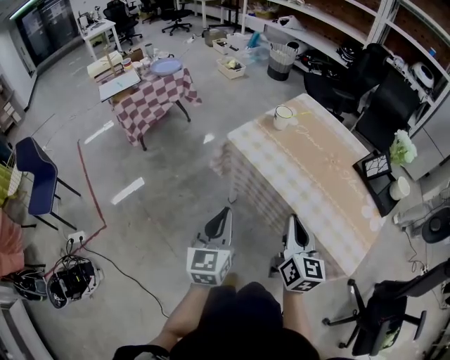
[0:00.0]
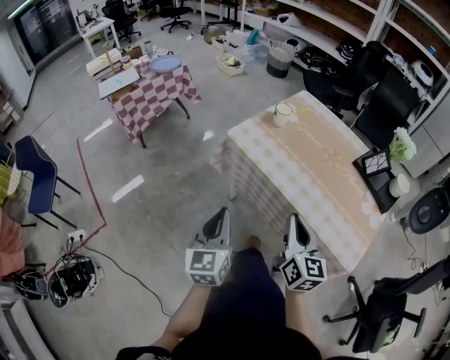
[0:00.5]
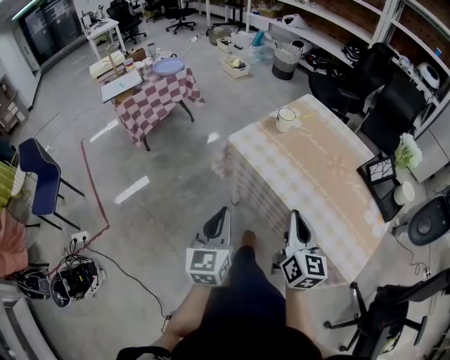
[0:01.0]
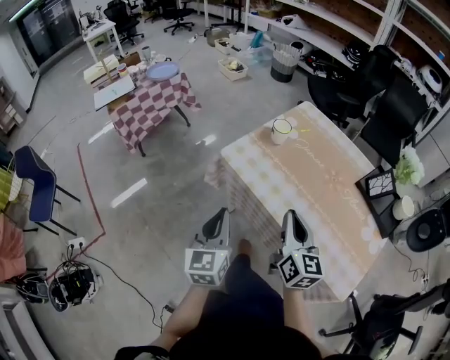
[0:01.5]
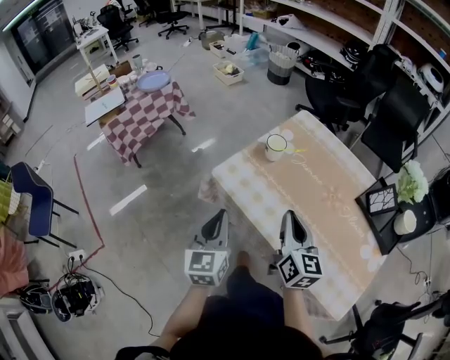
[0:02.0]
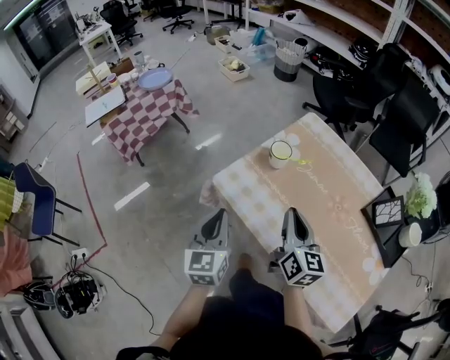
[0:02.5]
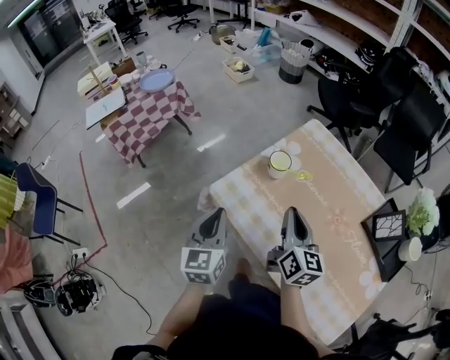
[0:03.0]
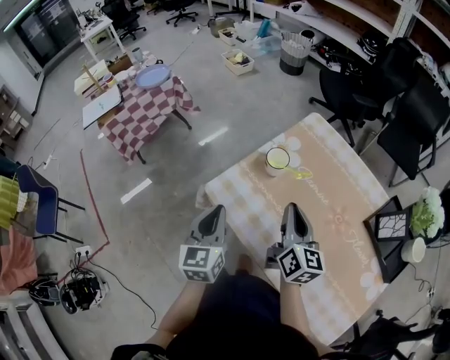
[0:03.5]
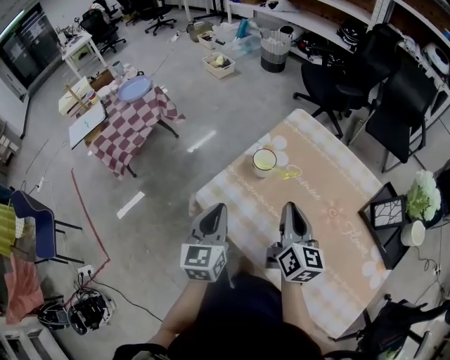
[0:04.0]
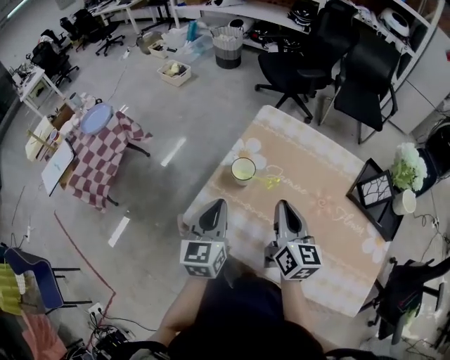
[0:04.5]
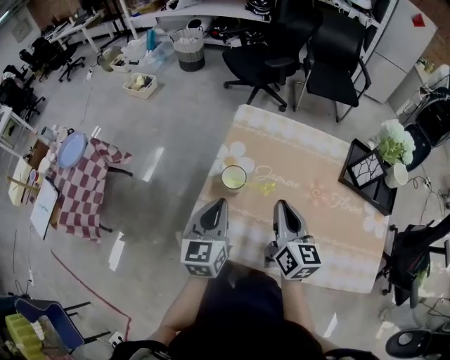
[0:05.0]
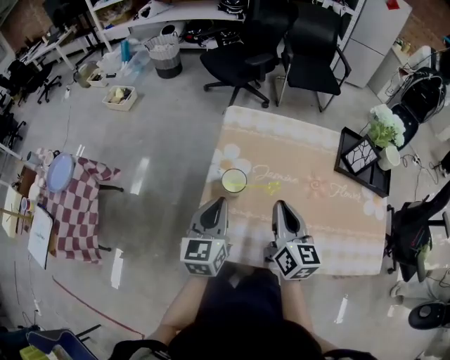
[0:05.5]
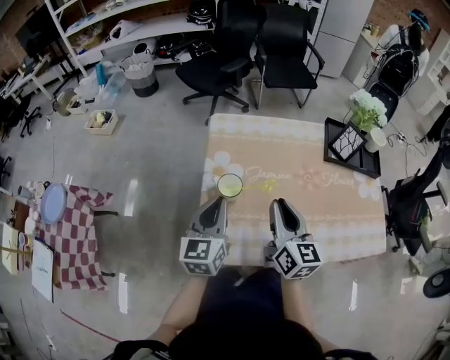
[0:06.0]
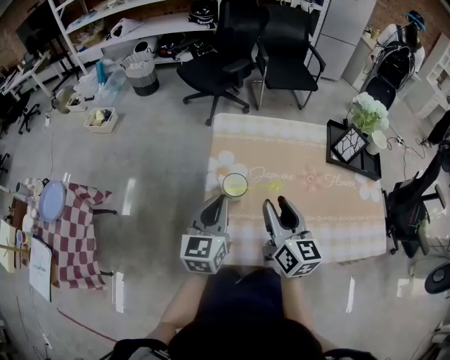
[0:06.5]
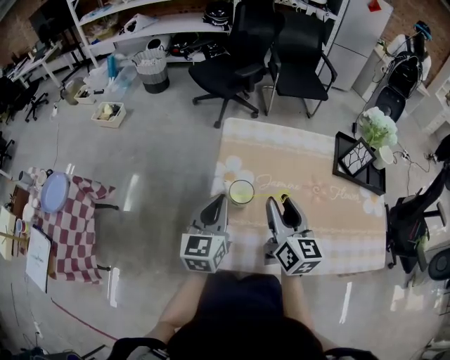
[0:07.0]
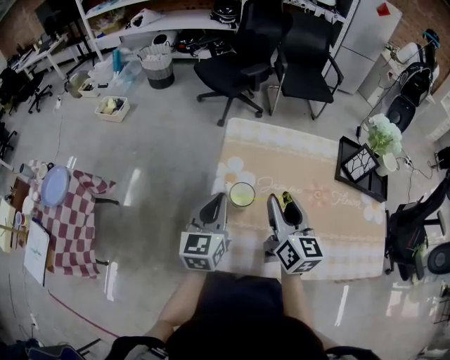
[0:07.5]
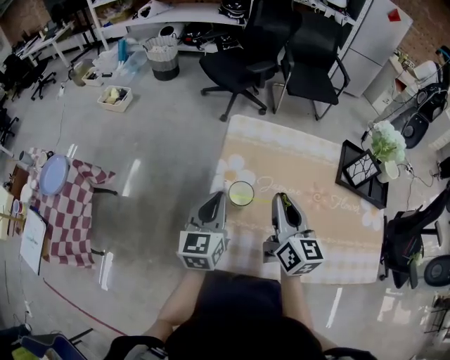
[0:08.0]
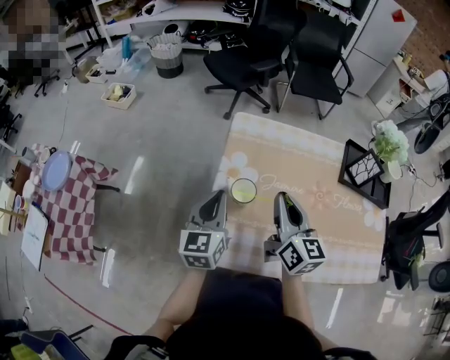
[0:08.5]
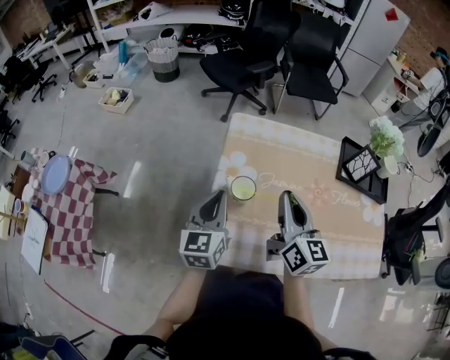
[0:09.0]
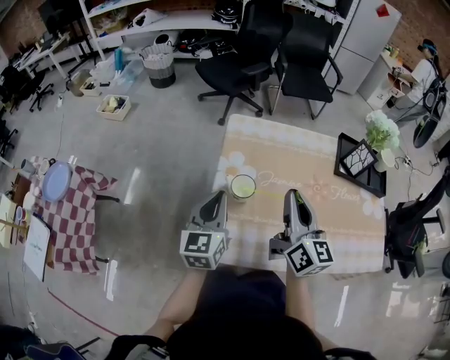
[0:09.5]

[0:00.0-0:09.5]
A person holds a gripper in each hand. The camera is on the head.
0.0 to 2.0 s: The grippers both shift forward by roughly 20 cm.
2.0 to 4.0 s: The grippers both shift forward by about 15 cm.
4.0 to 5.5 s: The right gripper turns by some 30 degrees. Meanwhile the left gripper moves about 15 cm, and changes its angle by approximately 40 degrees.
5.5 to 7.5 s: The right gripper ends up approximately 5 cm from where it was, and opens its fingers. Meanwhile the left gripper changes place by about 5 cm.
7.5 to 9.5 s: The right gripper shifts by roughly 5 cm, and closes up.

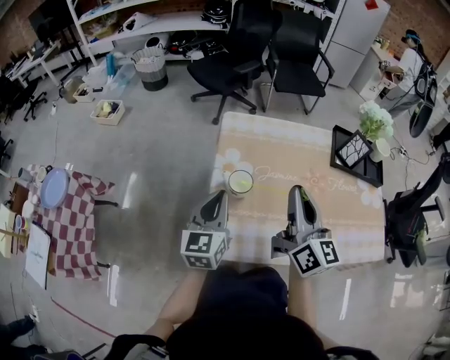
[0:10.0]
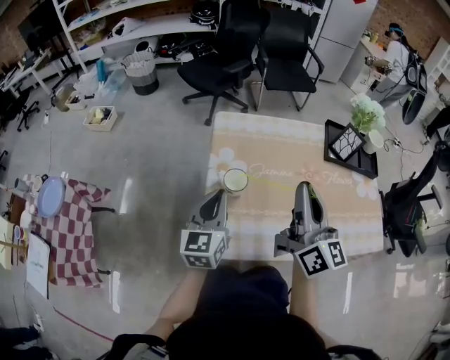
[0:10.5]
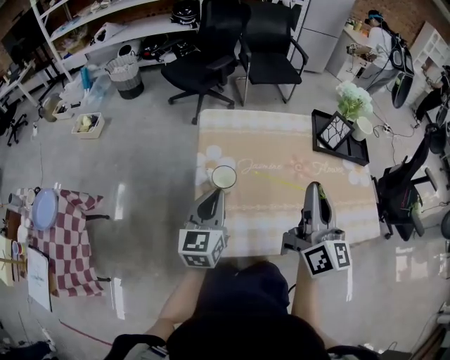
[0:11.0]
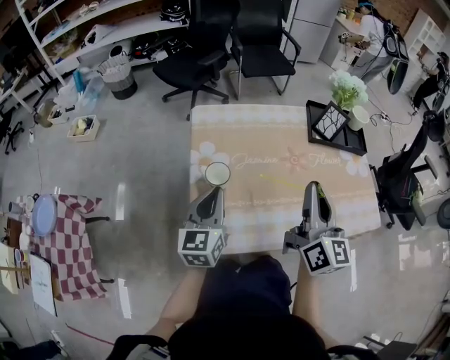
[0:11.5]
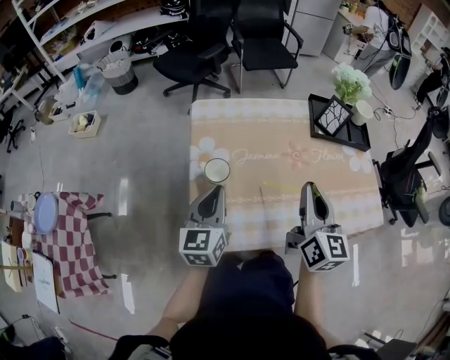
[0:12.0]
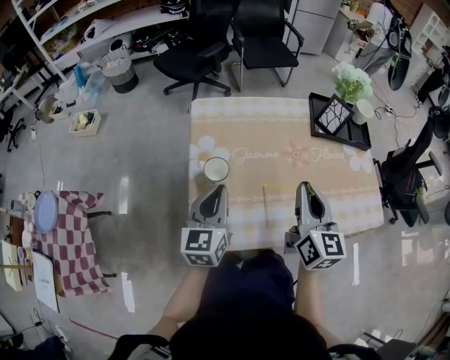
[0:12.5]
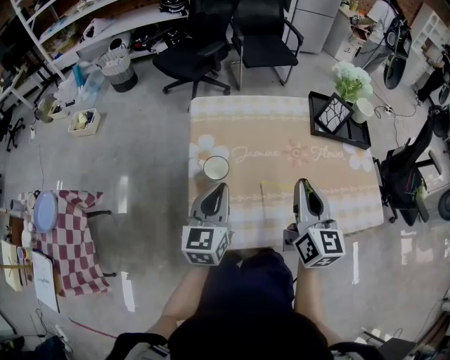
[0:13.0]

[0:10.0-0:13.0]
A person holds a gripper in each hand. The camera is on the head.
10.0 to 11.5 s: The right gripper shifts about 10 cm to the right.
11.5 to 13.0 s: The right gripper moves downward, some 5 cm.

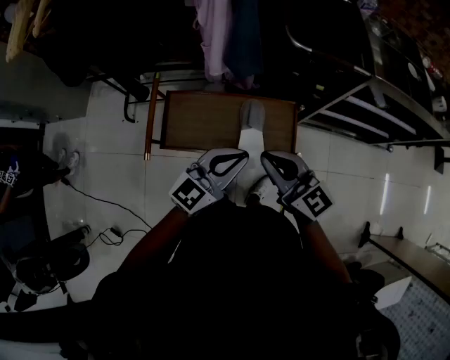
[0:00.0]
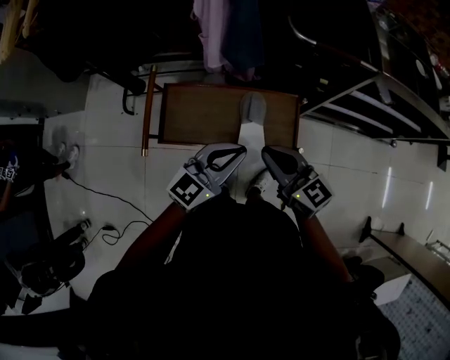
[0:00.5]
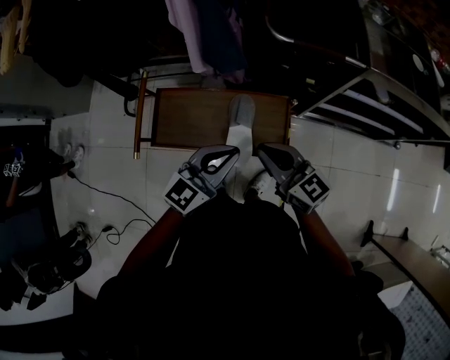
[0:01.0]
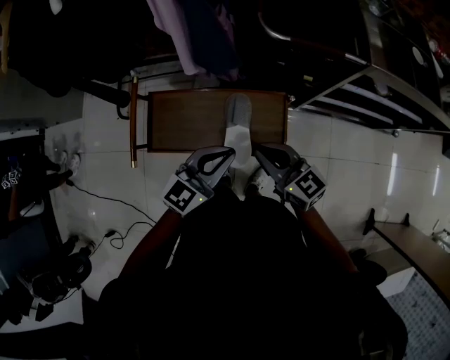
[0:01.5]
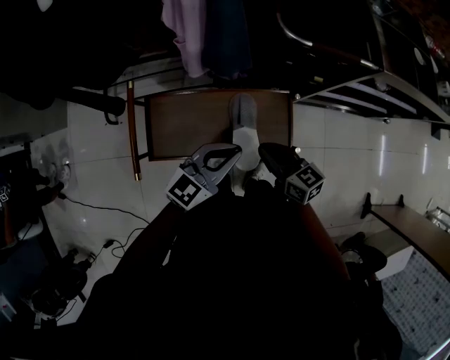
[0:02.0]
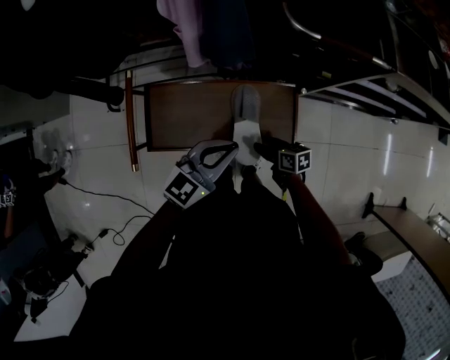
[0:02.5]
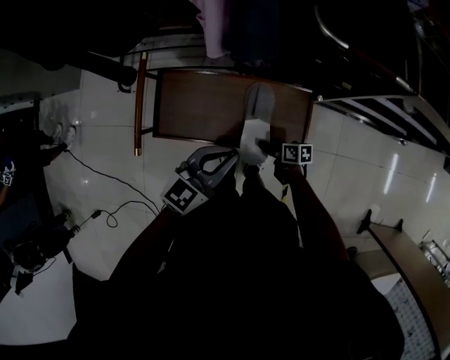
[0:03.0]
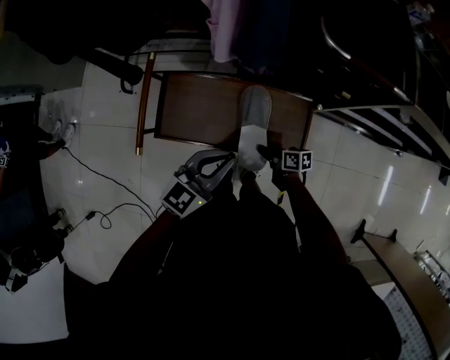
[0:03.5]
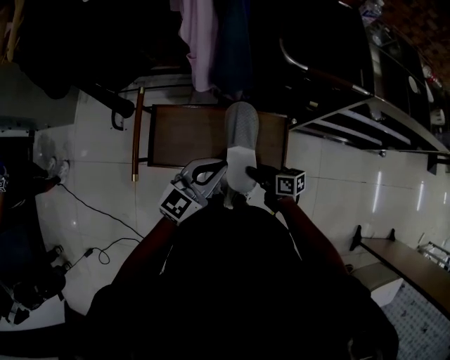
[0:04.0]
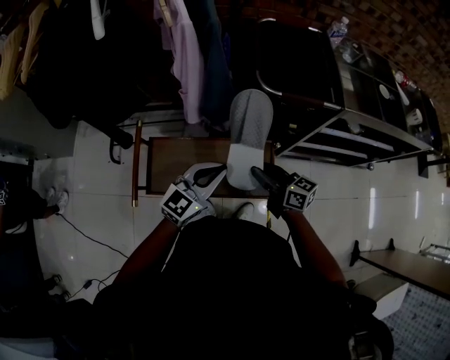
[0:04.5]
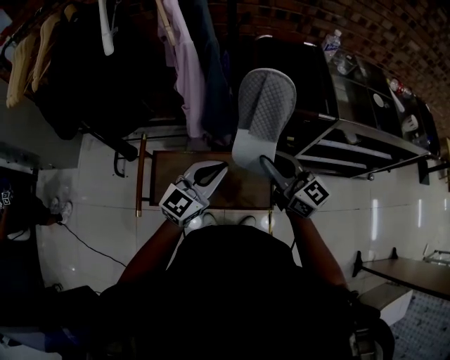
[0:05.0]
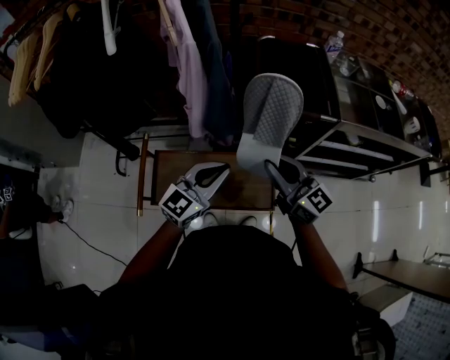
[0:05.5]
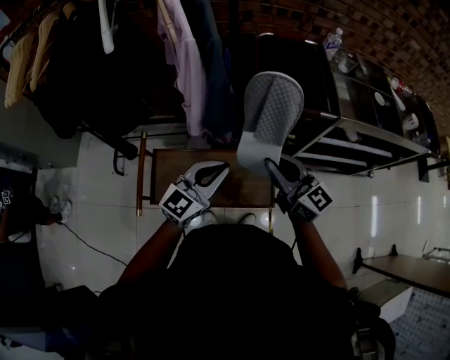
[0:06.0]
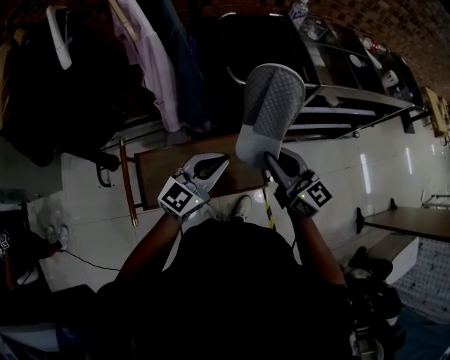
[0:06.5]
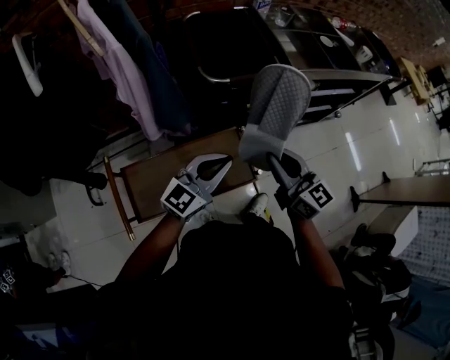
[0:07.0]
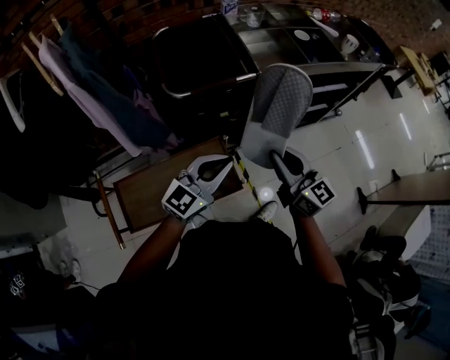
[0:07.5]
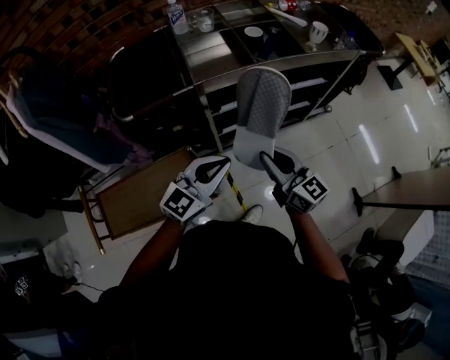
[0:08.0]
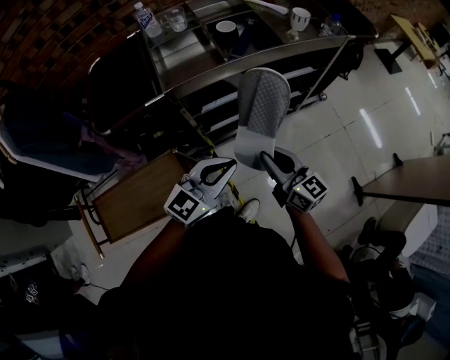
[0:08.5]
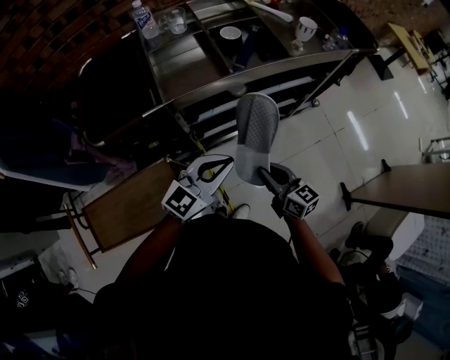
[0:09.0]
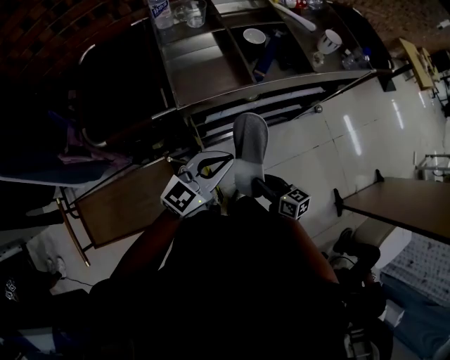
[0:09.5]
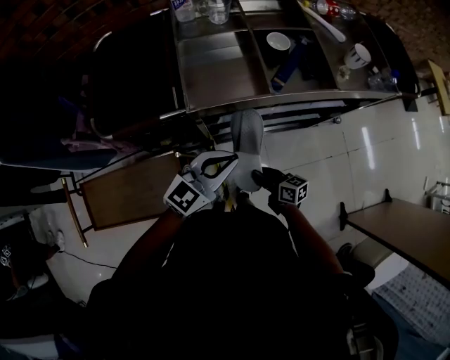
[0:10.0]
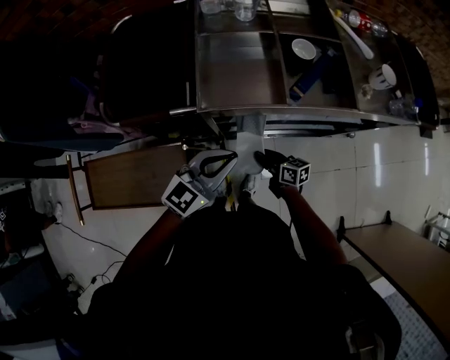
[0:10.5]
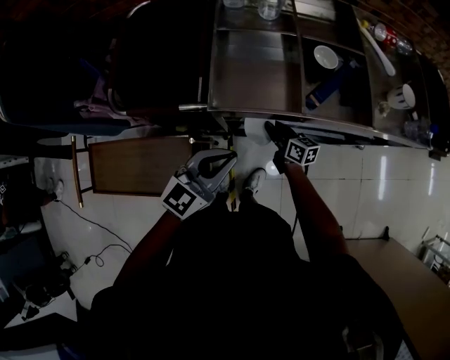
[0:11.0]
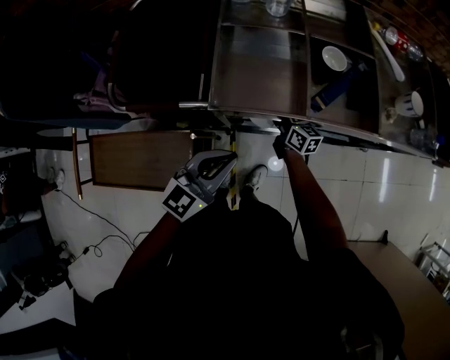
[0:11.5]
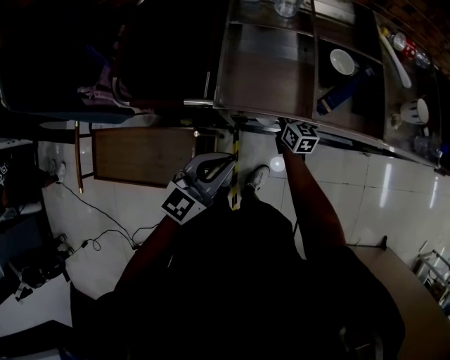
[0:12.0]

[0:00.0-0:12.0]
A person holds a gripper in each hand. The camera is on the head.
0.0 to 2.0 s: The right gripper heads downward and forward, covering roughly 20 cm, and swivels about 30 degrees. Meanwhile the left gripper shifts about 10 cm forward and downward.
2.0 to 4.0 s: The right gripper heads downward, covering roughly 10 cm, rotates about 30 degrees, and opens, then closes again.
4.0 to 6.0 s: The left gripper is displaced upward and forward by approximately 10 cm; the right gripper is displaced upward by roughly 30 cm, and rotates around the line of its fingers by about 50 degrees, counterclockwise from behind.
6.0 to 8.0 s: The two grippers travel together, some 40 cm. The right gripper rotates some 30 degrees, while the left gripper turns by about 20 degrees.
8.0 to 10.0 s: The right gripper heads downward and forward, covering some 30 cm, and rotates some 40 degrees. The left gripper goes approximately 15 cm forward.
10.0 to 12.0 s: The right gripper is displaced forward by roughly 30 cm, and swivels approximately 20 degrees. The left gripper moves roughly 5 cm, and turns by approximately 20 degrees.

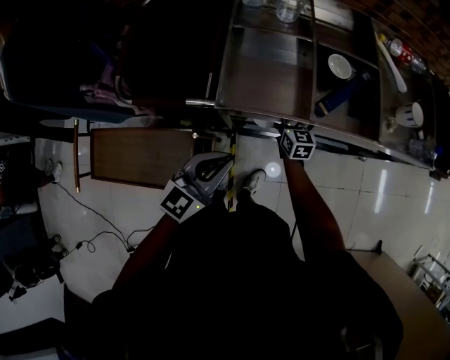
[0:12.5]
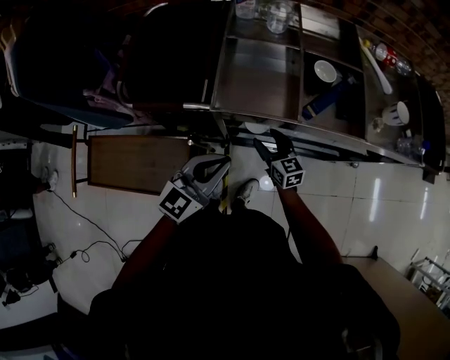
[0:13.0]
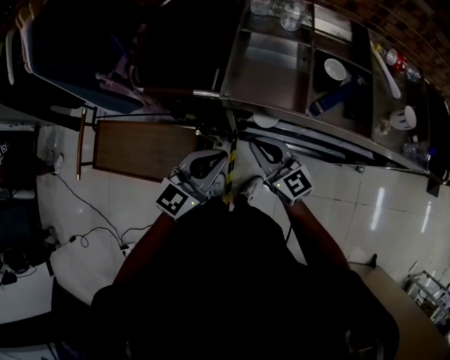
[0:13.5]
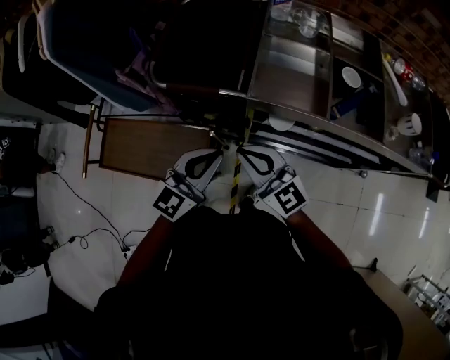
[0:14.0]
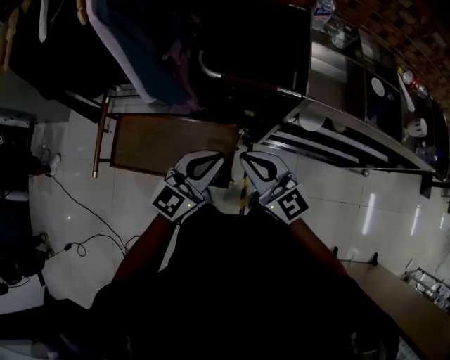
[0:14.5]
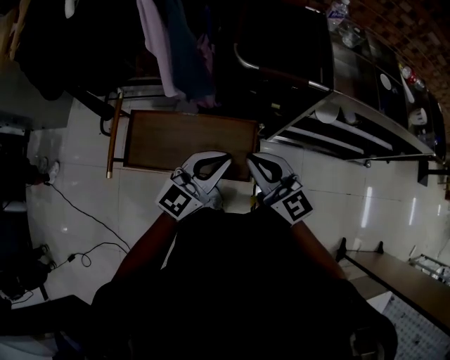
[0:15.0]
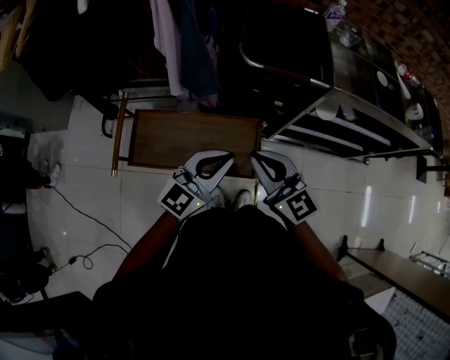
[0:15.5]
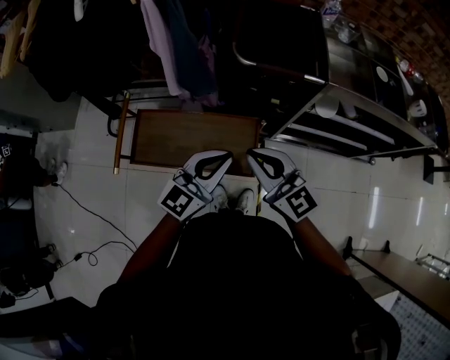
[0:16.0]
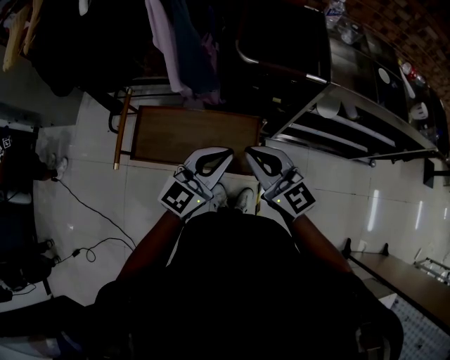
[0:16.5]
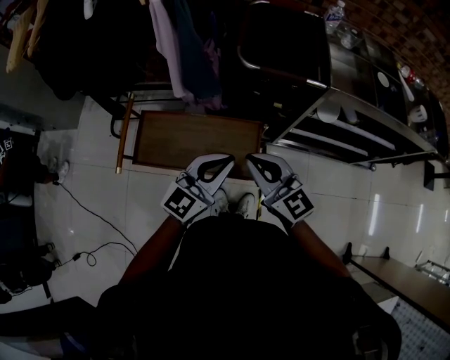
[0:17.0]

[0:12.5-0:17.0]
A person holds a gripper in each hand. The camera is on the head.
12.5 to 14.5 s: The right gripper heads to the left, backward and upward, covering roughly 50 cm, rotates about 40 degrees, and closes up. Meanwhile the left gripper travels to the left by roughly 25 cm.
14.5 to 17.0 s: The two grippers go roughly 15 cm to the left and backward.
